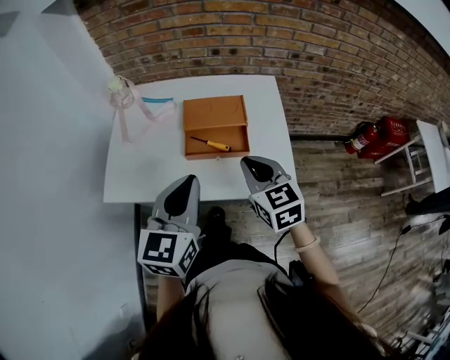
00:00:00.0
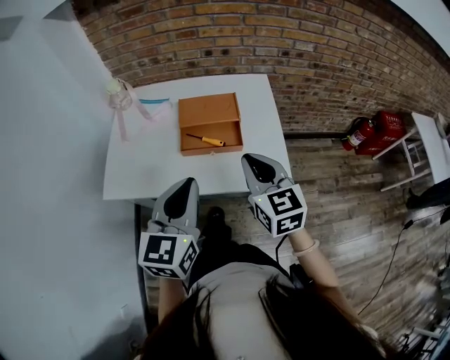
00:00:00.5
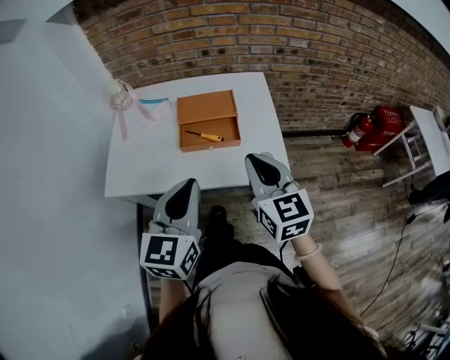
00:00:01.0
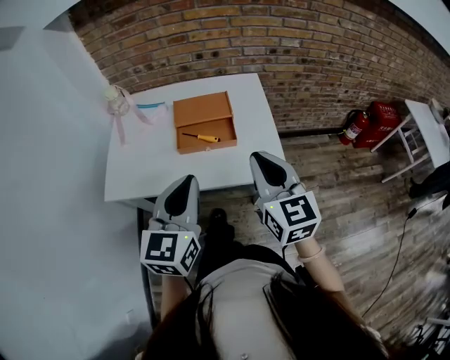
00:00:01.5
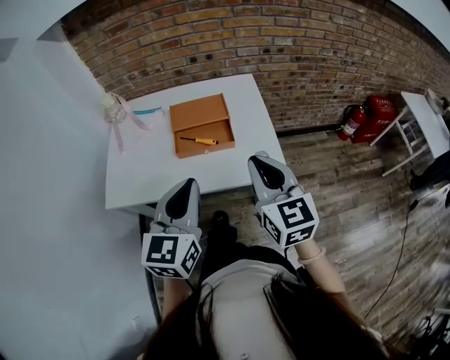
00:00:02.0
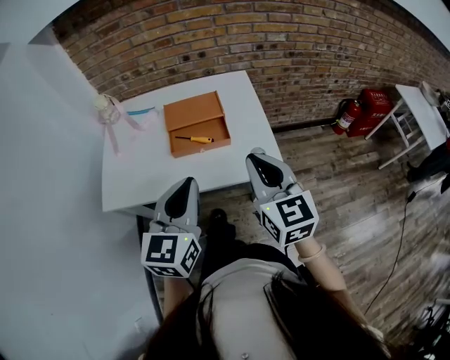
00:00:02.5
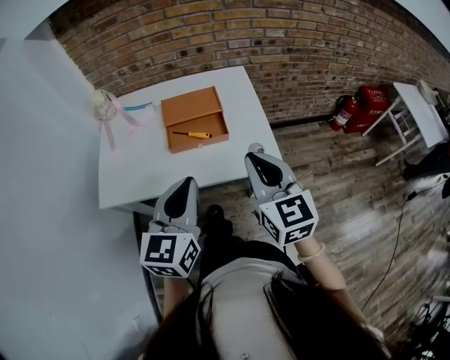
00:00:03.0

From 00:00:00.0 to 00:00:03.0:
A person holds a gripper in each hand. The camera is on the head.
From 00:00:00.0 to 00:00:01.5: The left gripper is displaced backward by roughly 5 cm. Meanwhile the right gripper moves backward, upward and to the right, roughly 15 cm, and turns by roughly 20 degrees.
From 00:00:01.5 to 00:00:03.0: The grippers make only small movements.

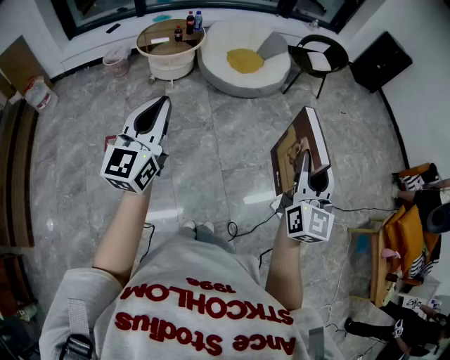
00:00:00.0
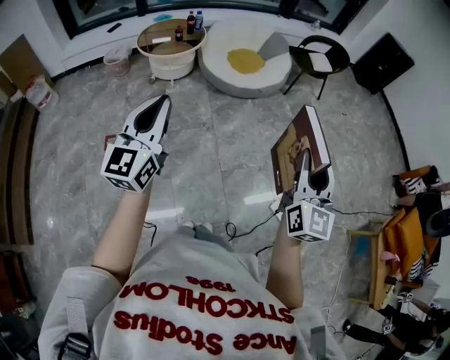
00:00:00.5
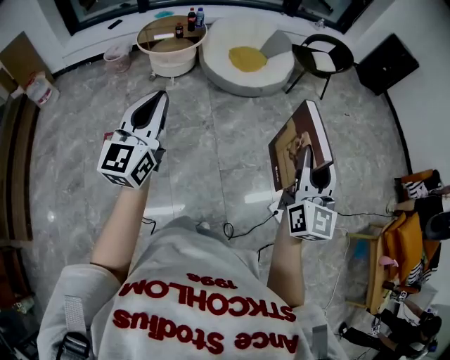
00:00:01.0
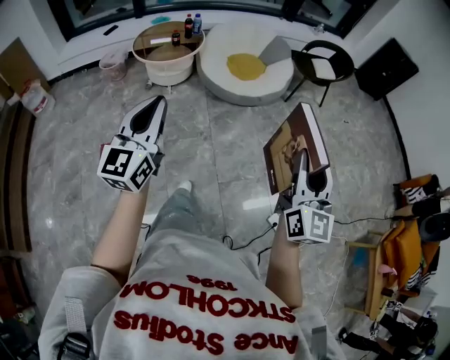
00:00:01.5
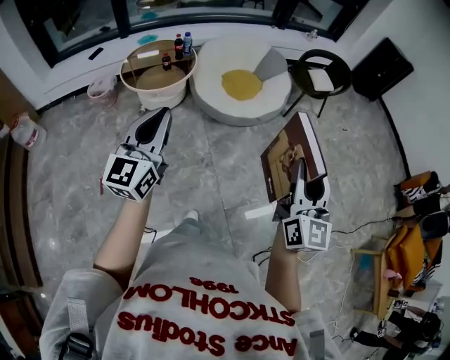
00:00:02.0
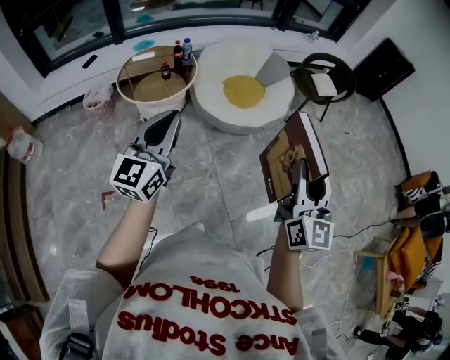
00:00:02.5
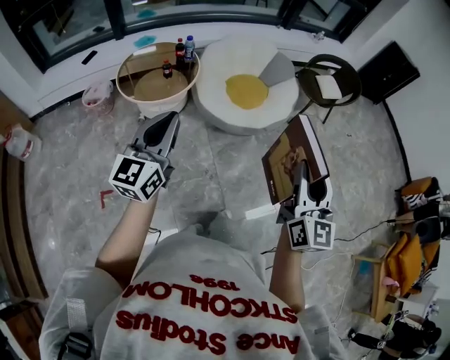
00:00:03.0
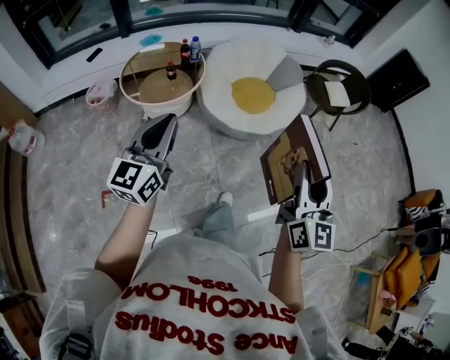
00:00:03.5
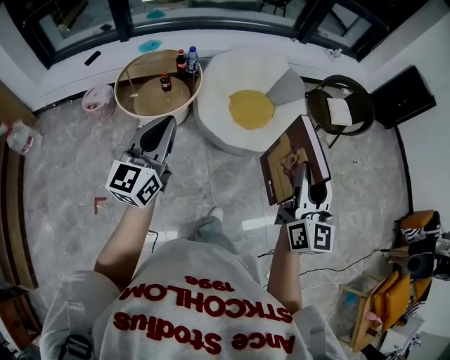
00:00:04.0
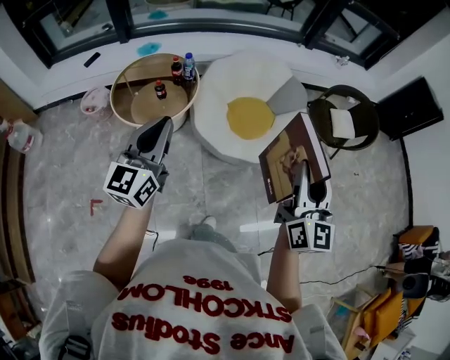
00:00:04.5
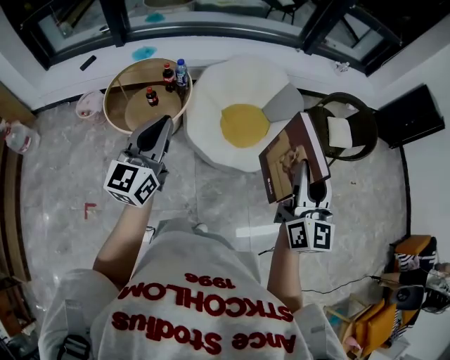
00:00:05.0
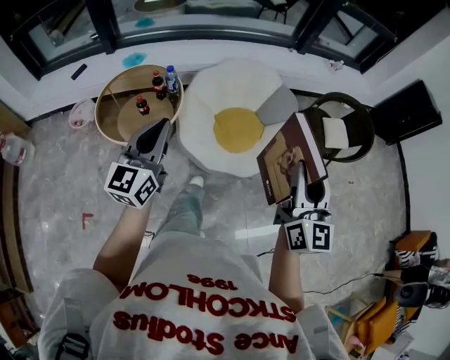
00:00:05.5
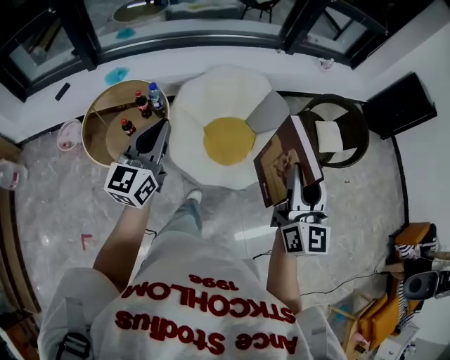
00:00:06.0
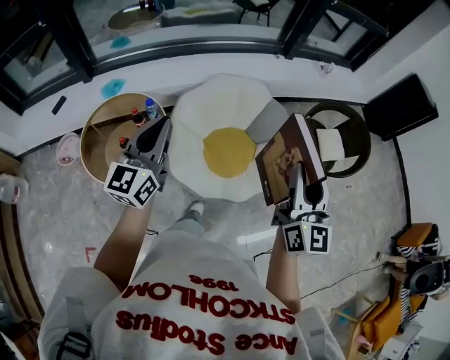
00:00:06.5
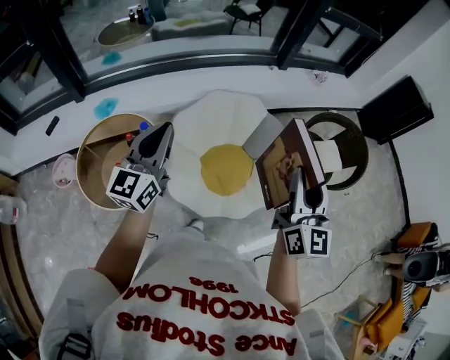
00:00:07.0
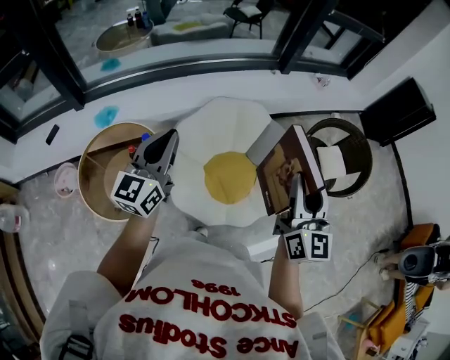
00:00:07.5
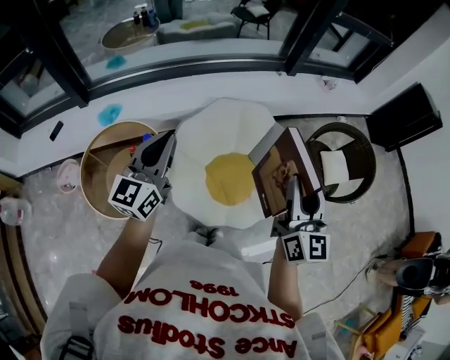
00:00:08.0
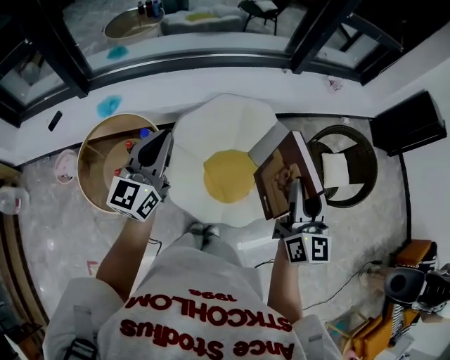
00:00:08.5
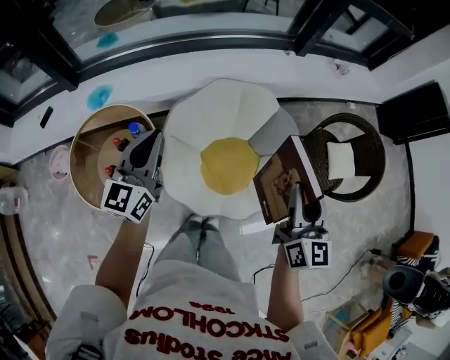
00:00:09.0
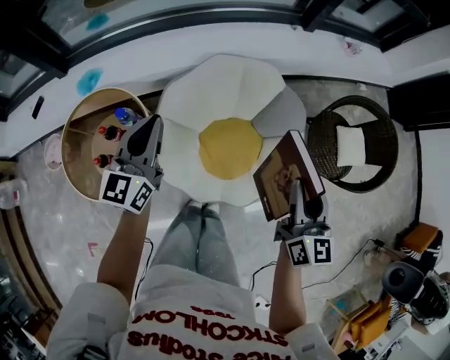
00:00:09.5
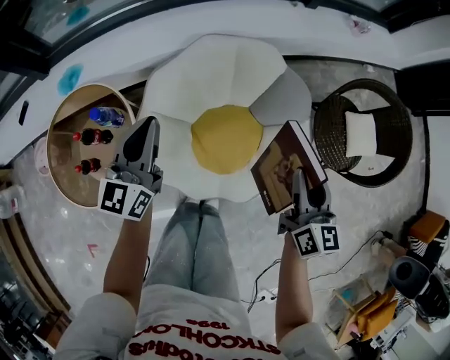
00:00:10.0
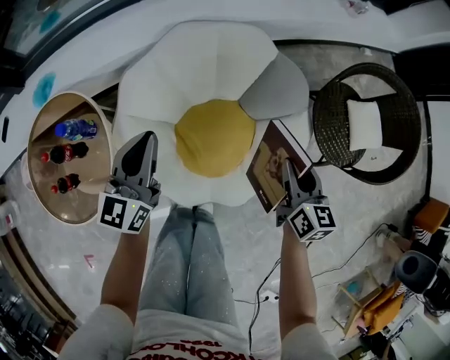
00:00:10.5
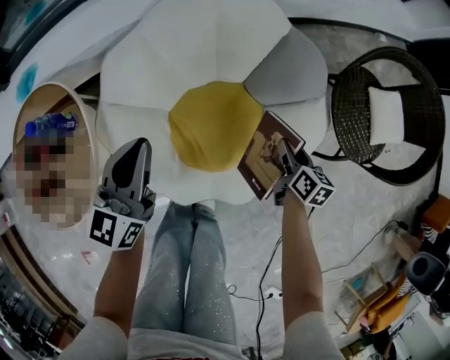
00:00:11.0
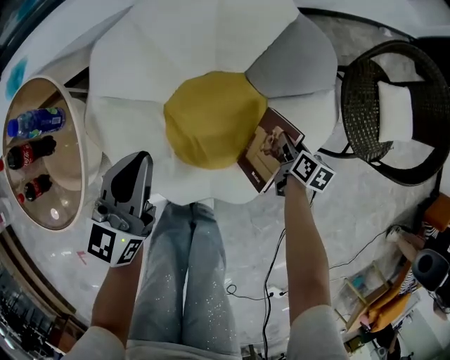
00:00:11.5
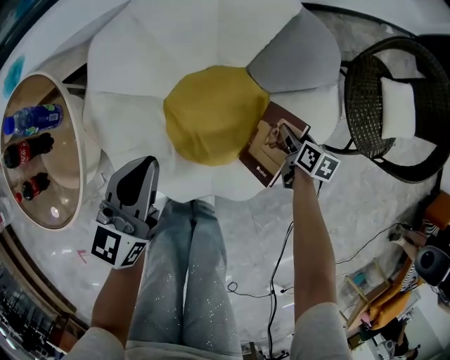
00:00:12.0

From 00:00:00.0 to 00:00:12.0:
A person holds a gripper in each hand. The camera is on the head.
From 00:00:00.0 to 00:00:02.0: The right gripper travels forward and to the left by about 30 cm. The left gripper goes roughly 30 cm forward.
From 00:00:02.0 to 00:00:04.0: Both grippers move forward, roughly 35 cm.
From 00:00:04.0 to 00:00:06.0: Both grippers travel together forward, roughly 35 cm.
From 00:00:06.0 to 00:00:08.0: Both grippers move forward, some 25 cm.
From 00:00:08.0 to 00:00:10.0: Both grippers travel together downward and forward, about 30 cm. The right gripper rotates roughly 20 degrees.
From 00:00:10.0 to 00:00:12.0: The left gripper travels downward by about 25 cm, while the right gripper heads downward, covering approximately 50 cm, tilts its fingers about 30 degrees downward, and opens its fingers.

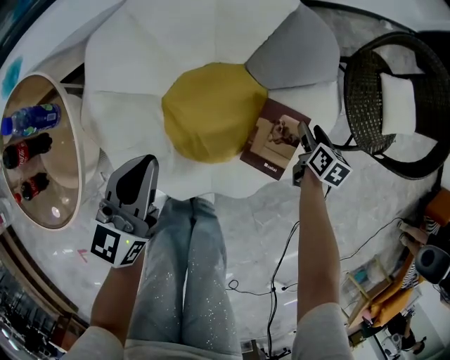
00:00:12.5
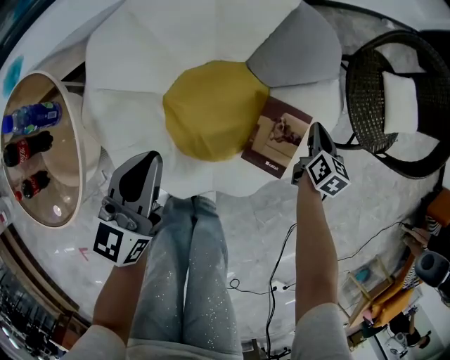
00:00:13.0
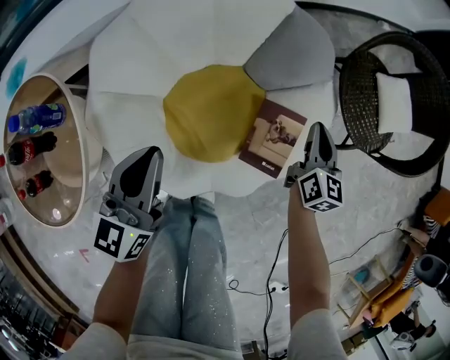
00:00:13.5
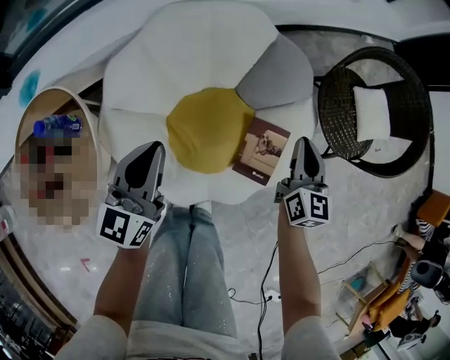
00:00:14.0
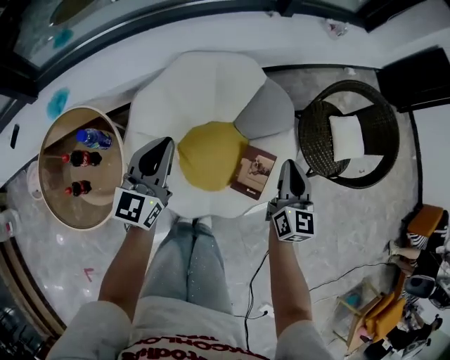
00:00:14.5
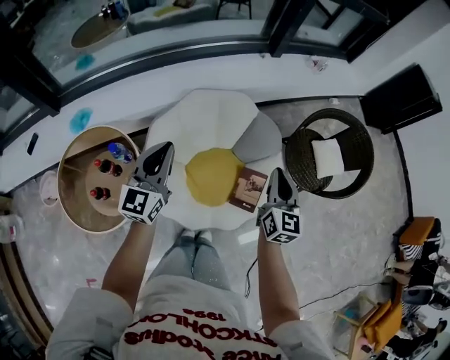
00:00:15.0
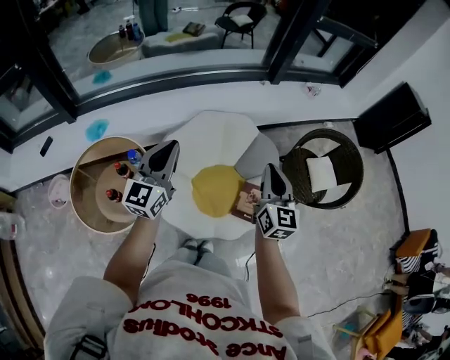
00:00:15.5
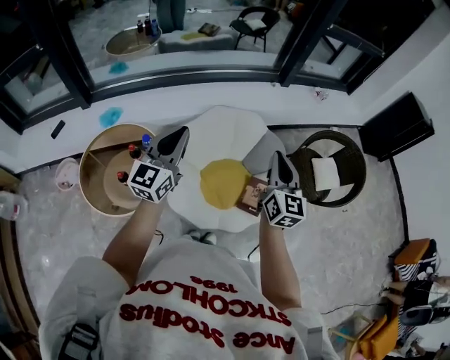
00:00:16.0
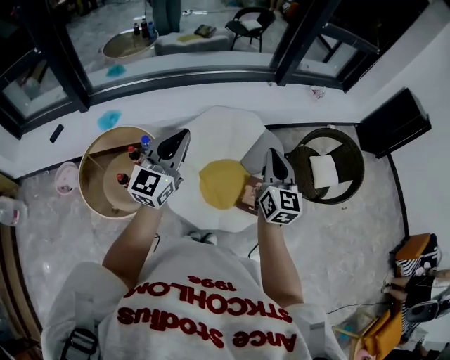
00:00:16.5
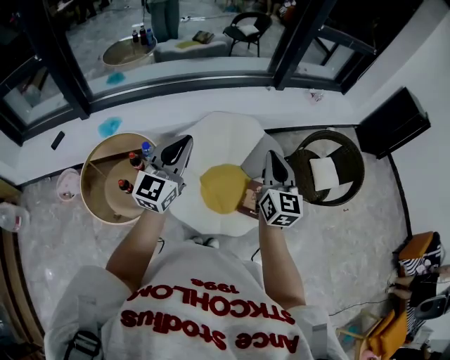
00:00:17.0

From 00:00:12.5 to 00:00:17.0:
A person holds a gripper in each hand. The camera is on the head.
From 00:00:12.5 to 00:00:14.5: The right gripper travels upward by roughly 40 cm, tilts its fingers some 30 degrees upward, and closes, while the left gripper is displaced upward by roughly 25 cm.
From 00:00:14.5 to 00:00:17.0: The right gripper heads upward, backward and to the left, covering approximately 40 cm. Meanwhile the left gripper shifts about 35 cm upward and backward.

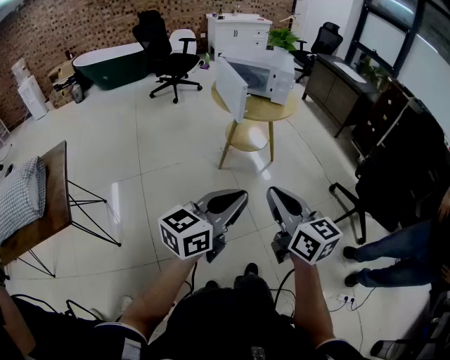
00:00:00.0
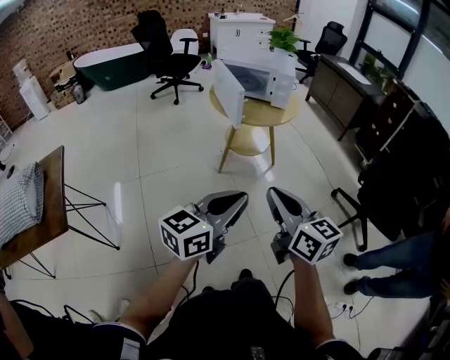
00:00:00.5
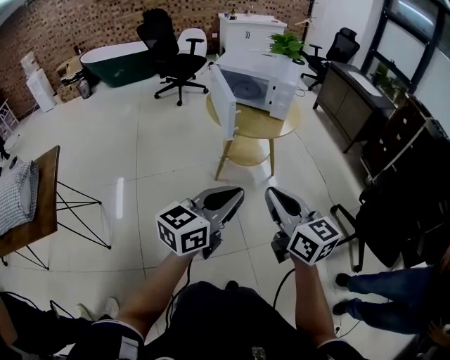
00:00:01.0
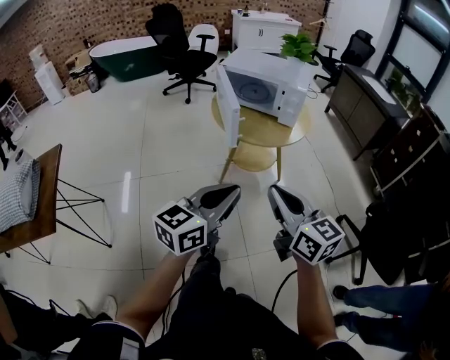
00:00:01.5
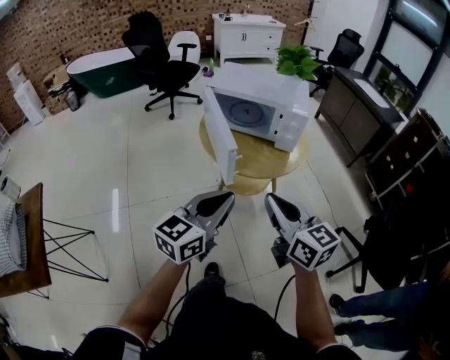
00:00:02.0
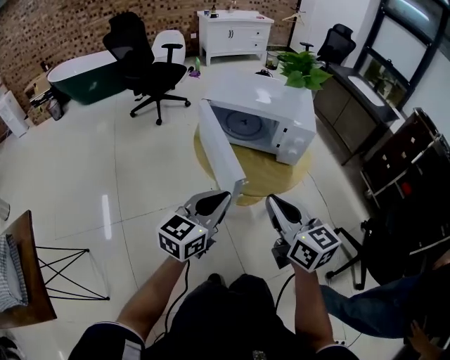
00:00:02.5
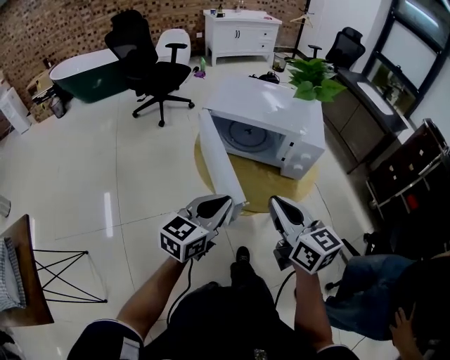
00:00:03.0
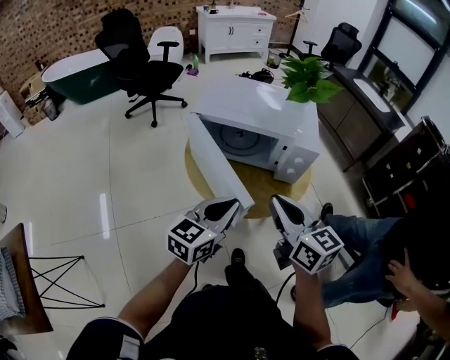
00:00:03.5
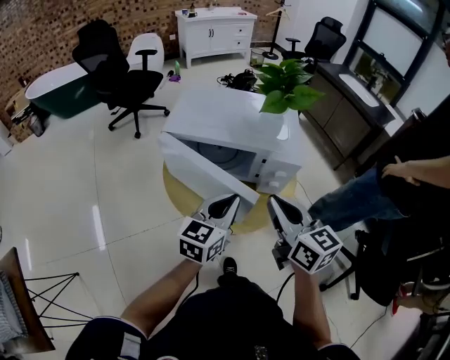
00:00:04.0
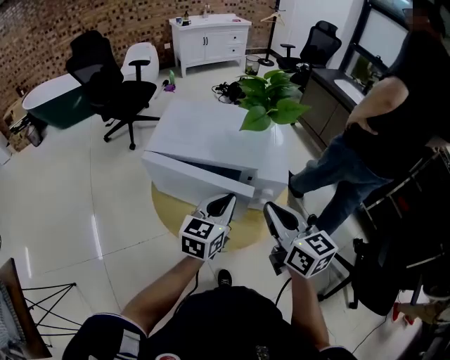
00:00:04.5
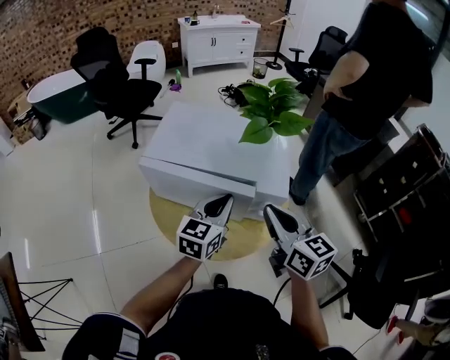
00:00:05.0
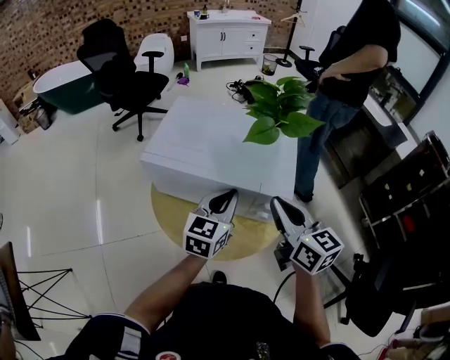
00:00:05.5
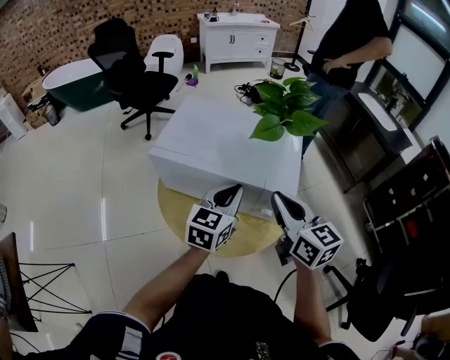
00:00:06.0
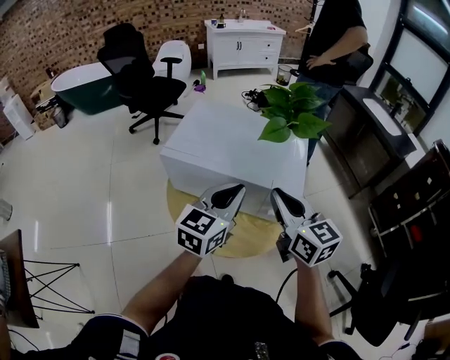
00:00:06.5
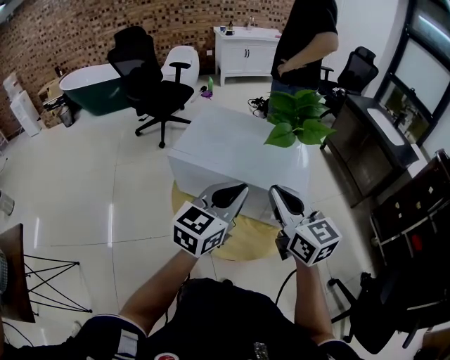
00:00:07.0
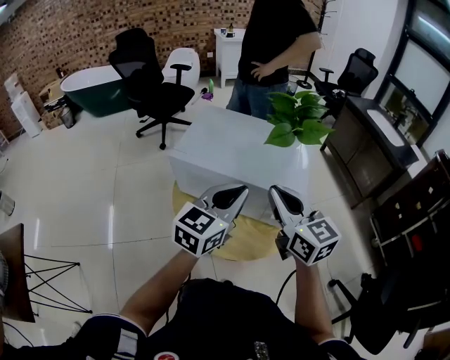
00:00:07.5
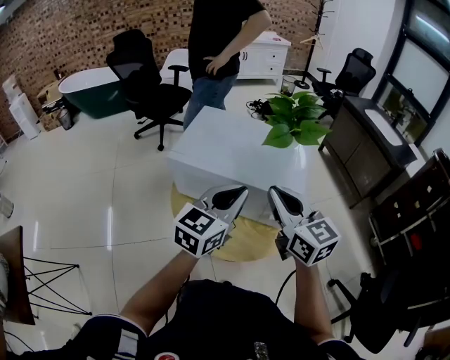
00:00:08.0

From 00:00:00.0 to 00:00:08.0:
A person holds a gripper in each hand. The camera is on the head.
From 00:00:00.0 to 00:00:02.0: The two grippers go about 40 cm forward.
From 00:00:02.0 to 00:00:04.0: The two grippers go about 30 cm forward.
From 00:00:04.0 to 00:00:06.0: The right gripper heads forward and to the right, covering about 10 cm. Meanwhile the left gripper moves forward, approximately 10 cm.
From 00:00:06.0 to 00:00:08.0: The right gripper moves approximately 5 cm. The left gripper travels upward by roughly 10 cm.
